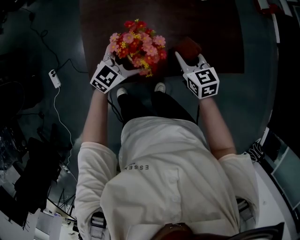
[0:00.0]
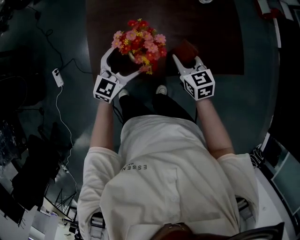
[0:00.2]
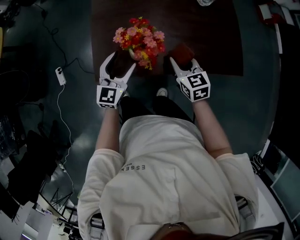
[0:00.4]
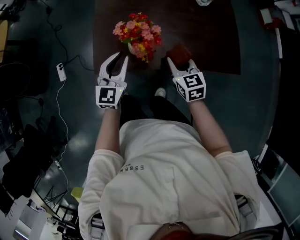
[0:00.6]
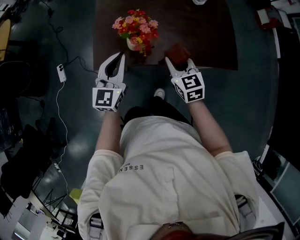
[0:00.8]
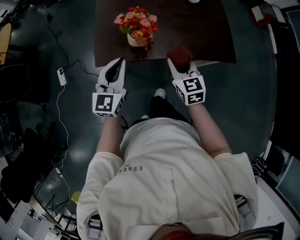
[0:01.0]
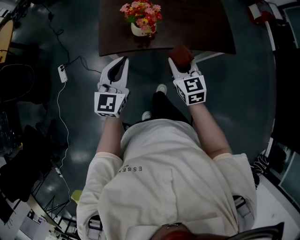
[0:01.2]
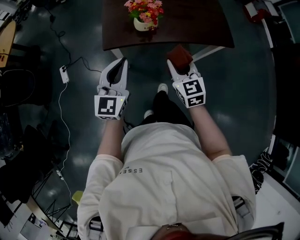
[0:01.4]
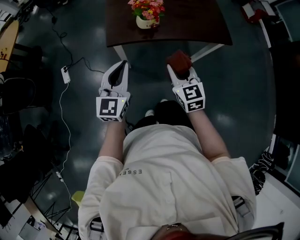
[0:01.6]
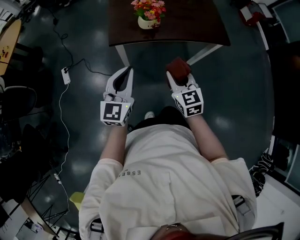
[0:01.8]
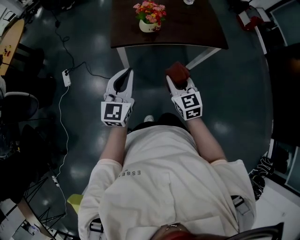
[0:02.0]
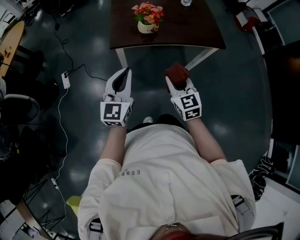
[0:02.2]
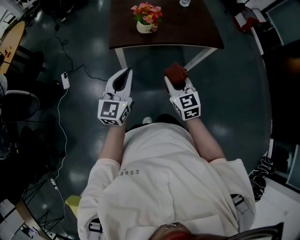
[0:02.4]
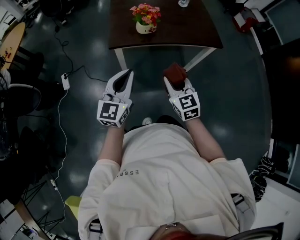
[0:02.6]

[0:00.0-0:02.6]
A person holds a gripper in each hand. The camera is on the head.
0:00.0 to 0:01.2: The left gripper shifts some 25 cm backward and upward, turns by about 40 degrees, and closes up. Meanwhile the right gripper goes approximately 20 cm backward.
0:01.2 to 0:02.6: The grippers both shift backward by about 20 cm.

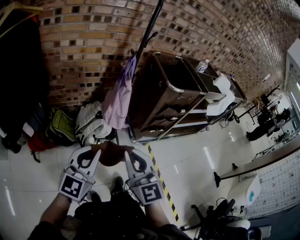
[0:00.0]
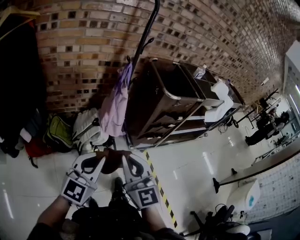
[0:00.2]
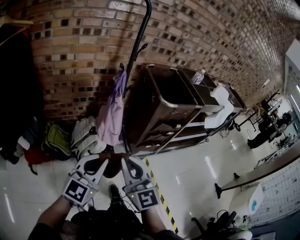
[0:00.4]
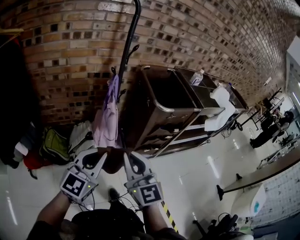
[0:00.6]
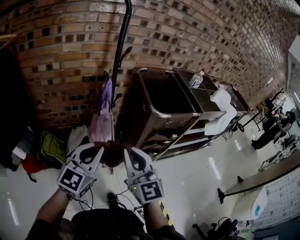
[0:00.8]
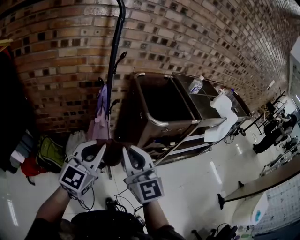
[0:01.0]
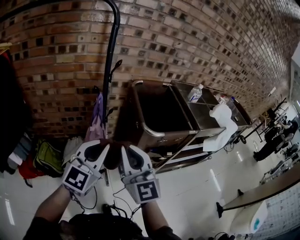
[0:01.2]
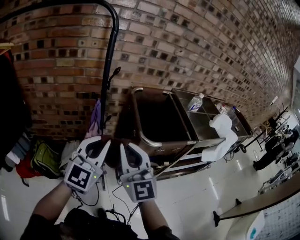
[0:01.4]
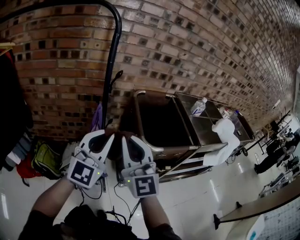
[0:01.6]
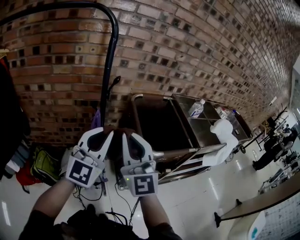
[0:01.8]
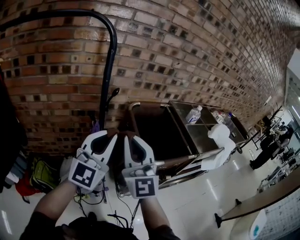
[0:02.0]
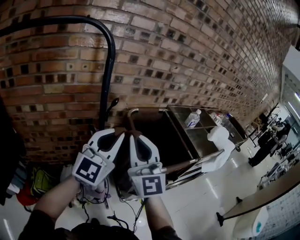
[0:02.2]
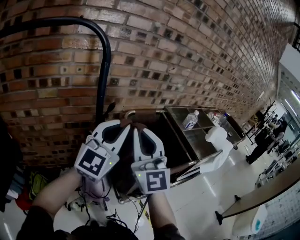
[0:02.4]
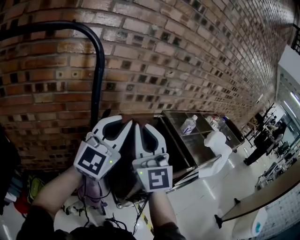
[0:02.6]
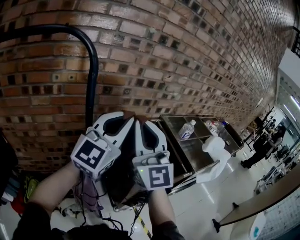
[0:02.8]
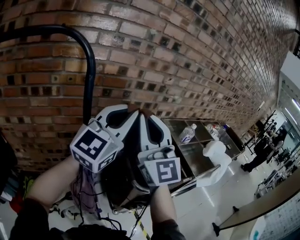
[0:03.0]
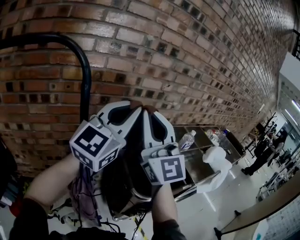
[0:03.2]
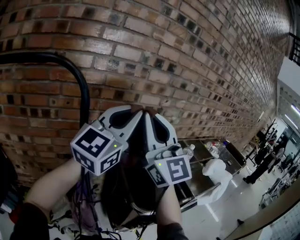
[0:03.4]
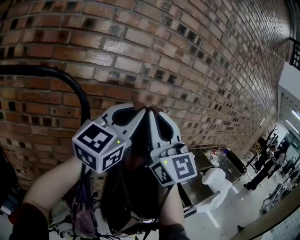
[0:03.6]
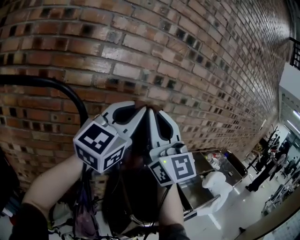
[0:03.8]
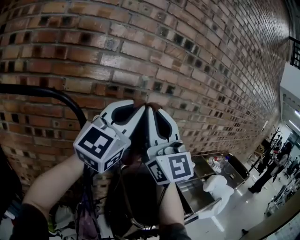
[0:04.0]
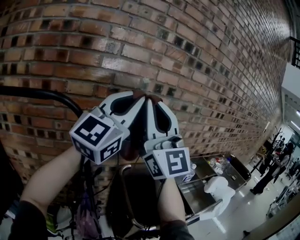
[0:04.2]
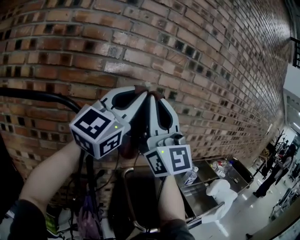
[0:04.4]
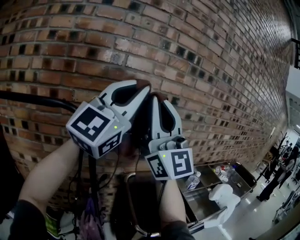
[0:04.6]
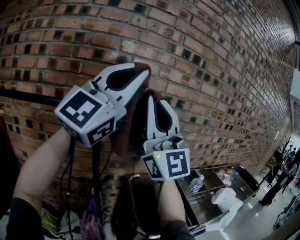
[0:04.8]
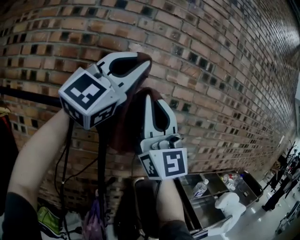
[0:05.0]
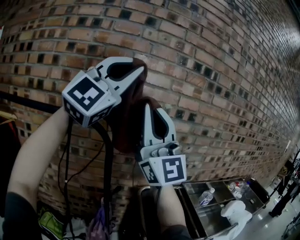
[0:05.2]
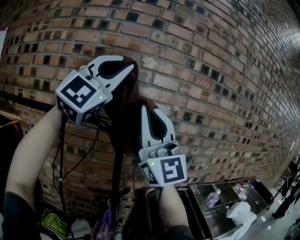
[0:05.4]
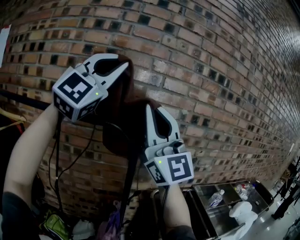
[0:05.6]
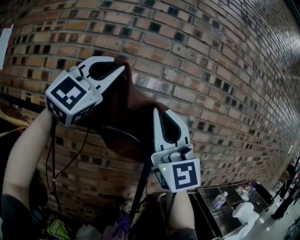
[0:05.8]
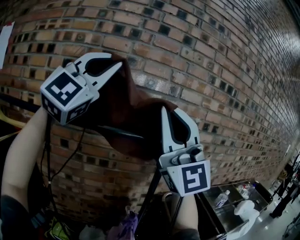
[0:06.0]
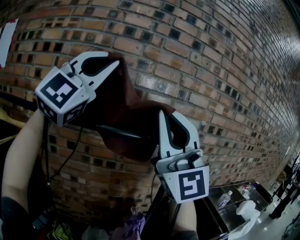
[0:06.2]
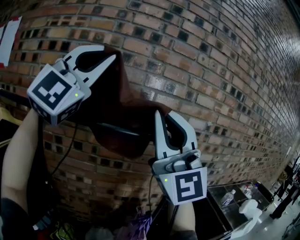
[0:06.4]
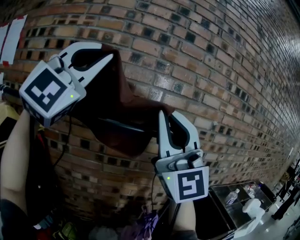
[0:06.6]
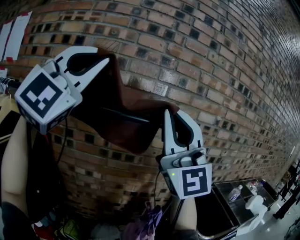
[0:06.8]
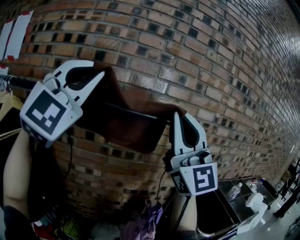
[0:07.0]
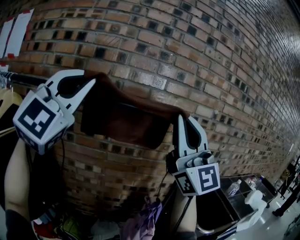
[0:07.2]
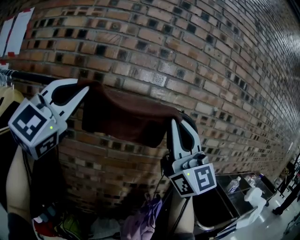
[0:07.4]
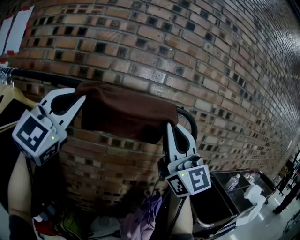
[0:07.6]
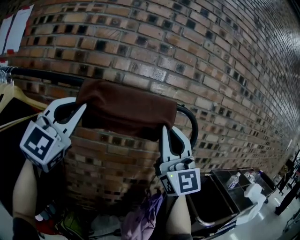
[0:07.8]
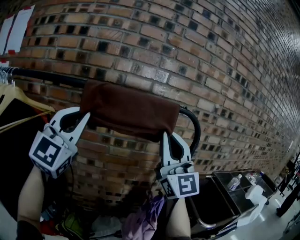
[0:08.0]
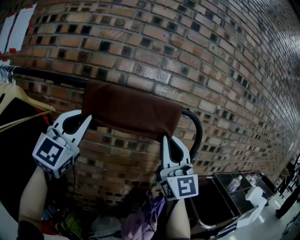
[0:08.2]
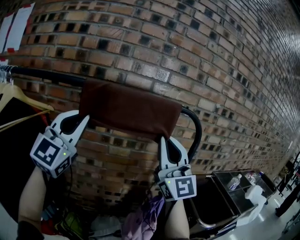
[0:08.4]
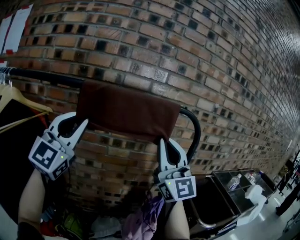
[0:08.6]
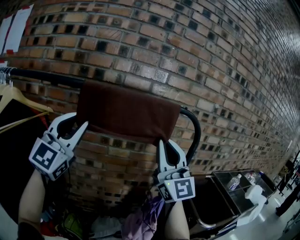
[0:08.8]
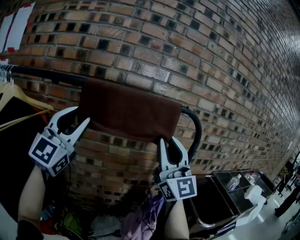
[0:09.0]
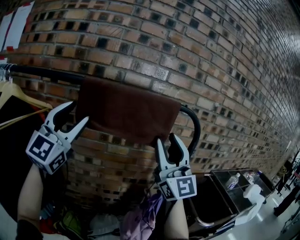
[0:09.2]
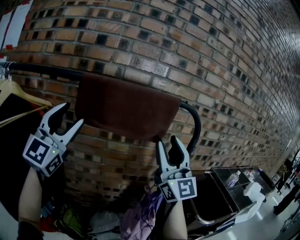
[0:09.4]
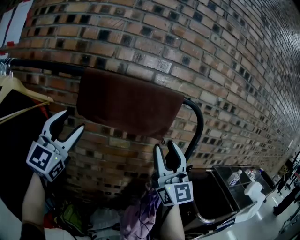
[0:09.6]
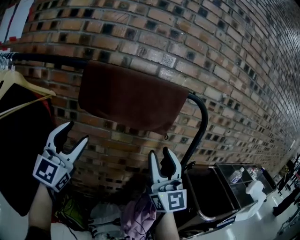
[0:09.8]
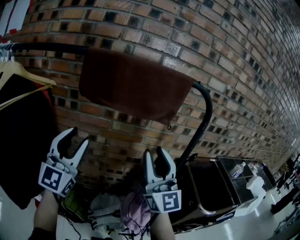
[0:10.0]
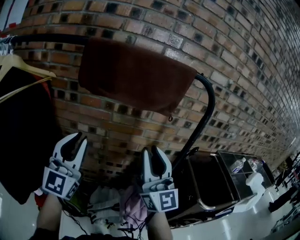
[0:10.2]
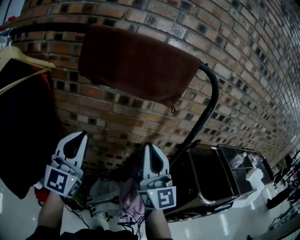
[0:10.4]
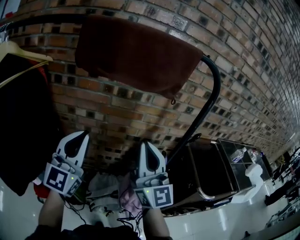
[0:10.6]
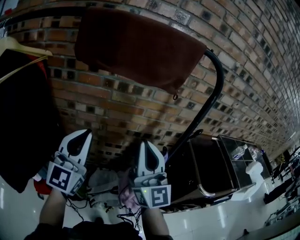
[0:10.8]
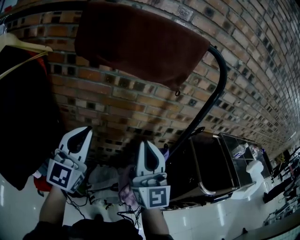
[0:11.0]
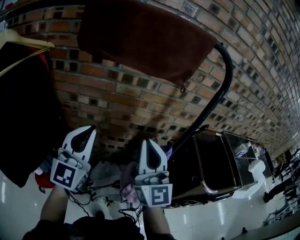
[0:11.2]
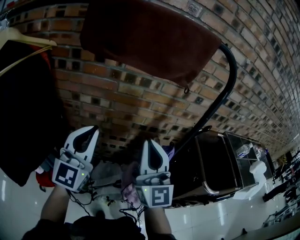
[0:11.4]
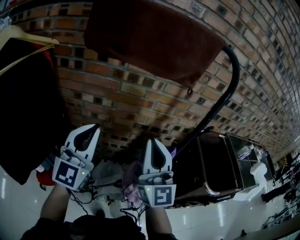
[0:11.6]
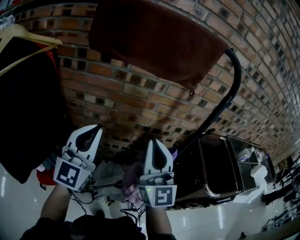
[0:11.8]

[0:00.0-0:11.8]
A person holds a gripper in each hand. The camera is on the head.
0:00.0 to 0:01.4: Both grippers travel together forward and to the right, roughly 40 cm.
0:01.4 to 0:03.0: Both grippers travel together forward and upward, some 30 cm. The left gripper turns by approximately 20 degrees.
0:03.0 to 0:04.4: The two grippers go approximately 25 cm upward. The right gripper changes its angle by approximately 20 degrees.
0:04.4 to 0:06.0: Both grippers move to the left, approximately 30 cm. The left gripper rotates some 40 degrees.
0:06.0 to 0:07.4: The left gripper moves to the left and downward, about 25 cm; the right gripper heads downward and to the left, covering some 15 cm.
0:07.4 to 0:08.8: Both grippers move downward, approximately 10 cm.
0:08.8 to 0:10.4: Both grippers move downward, approximately 15 cm. The right gripper opens, then closes once more, while the left gripper closes.
0:10.4 to 0:11.8: The right gripper goes roughly 5 cm downward.

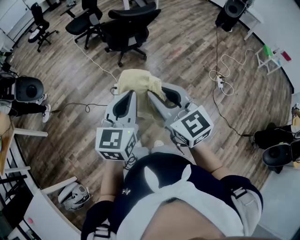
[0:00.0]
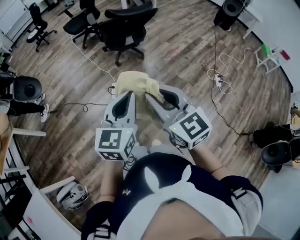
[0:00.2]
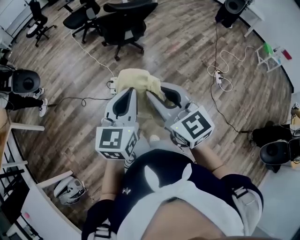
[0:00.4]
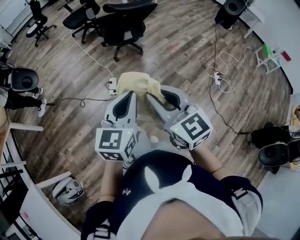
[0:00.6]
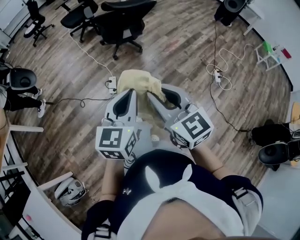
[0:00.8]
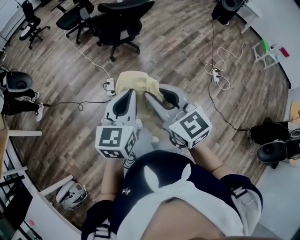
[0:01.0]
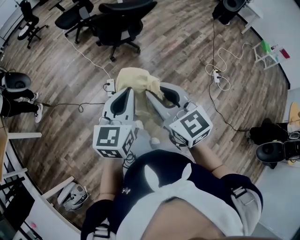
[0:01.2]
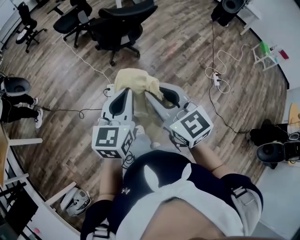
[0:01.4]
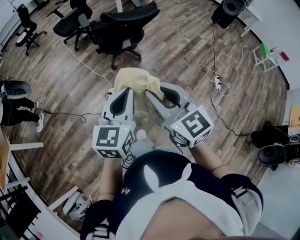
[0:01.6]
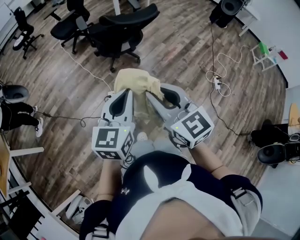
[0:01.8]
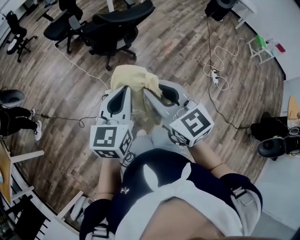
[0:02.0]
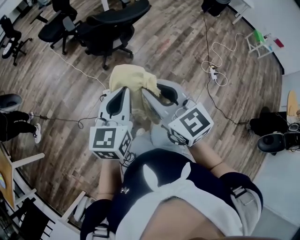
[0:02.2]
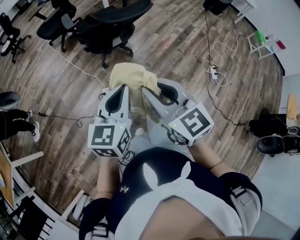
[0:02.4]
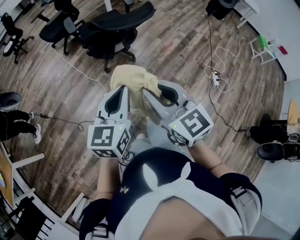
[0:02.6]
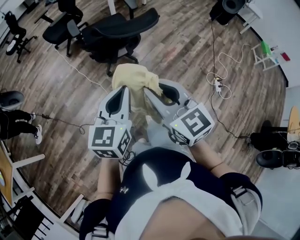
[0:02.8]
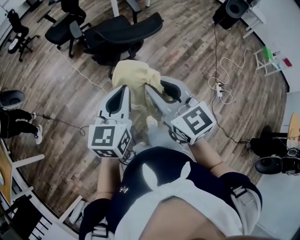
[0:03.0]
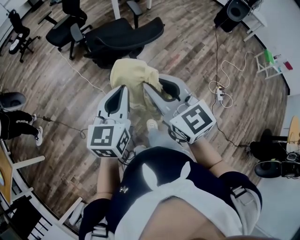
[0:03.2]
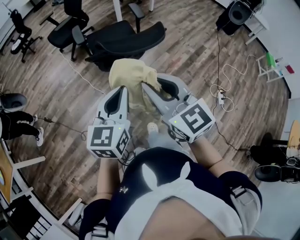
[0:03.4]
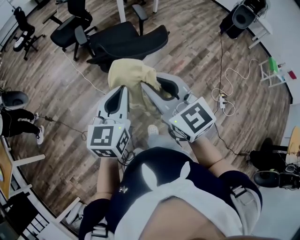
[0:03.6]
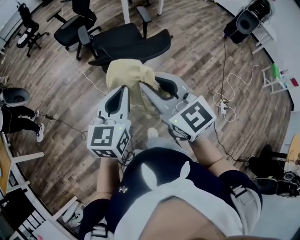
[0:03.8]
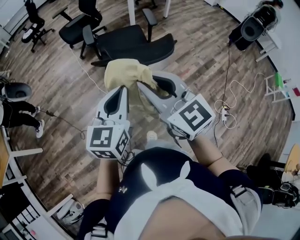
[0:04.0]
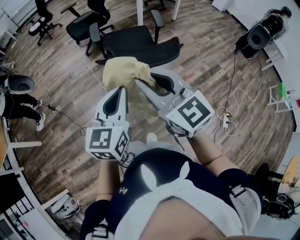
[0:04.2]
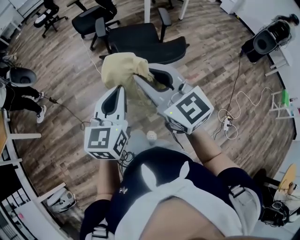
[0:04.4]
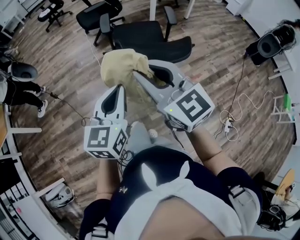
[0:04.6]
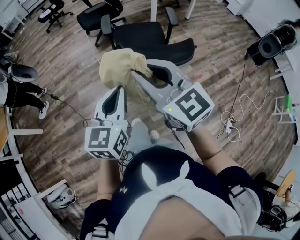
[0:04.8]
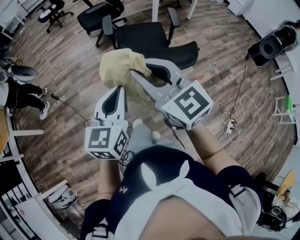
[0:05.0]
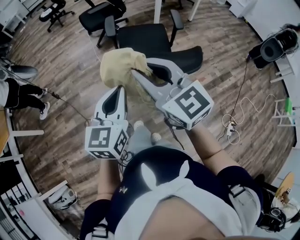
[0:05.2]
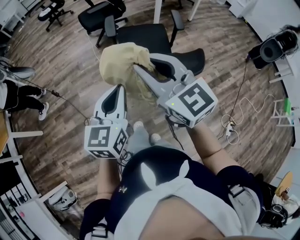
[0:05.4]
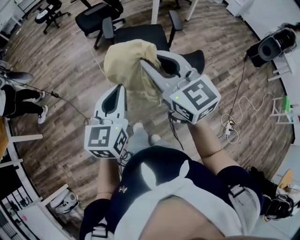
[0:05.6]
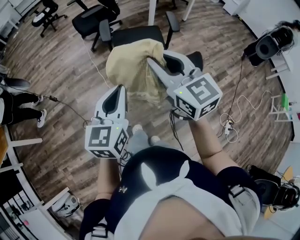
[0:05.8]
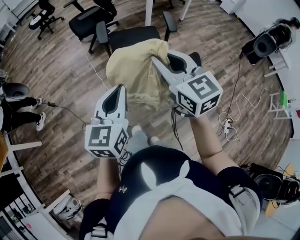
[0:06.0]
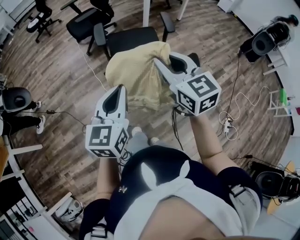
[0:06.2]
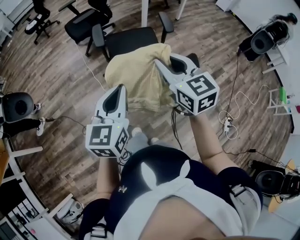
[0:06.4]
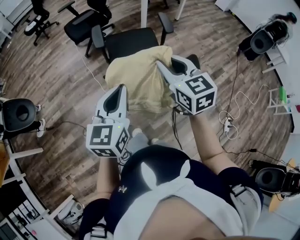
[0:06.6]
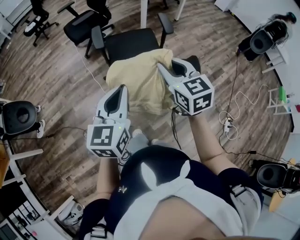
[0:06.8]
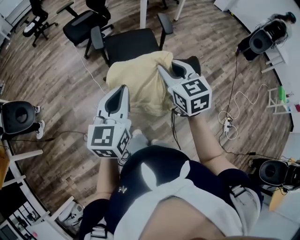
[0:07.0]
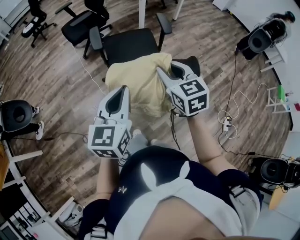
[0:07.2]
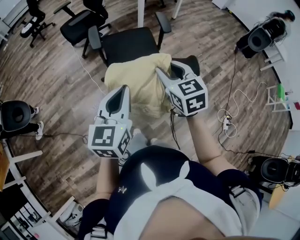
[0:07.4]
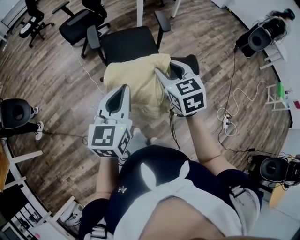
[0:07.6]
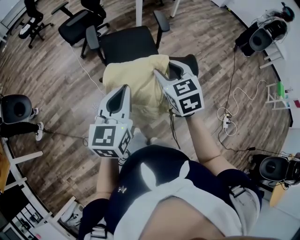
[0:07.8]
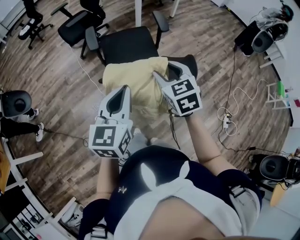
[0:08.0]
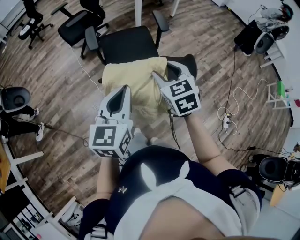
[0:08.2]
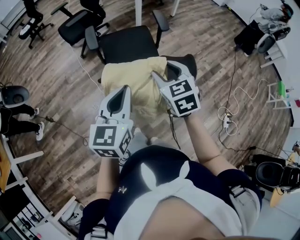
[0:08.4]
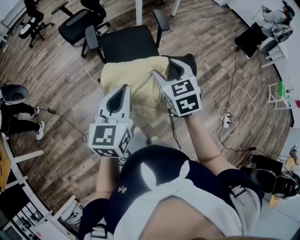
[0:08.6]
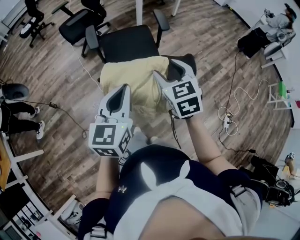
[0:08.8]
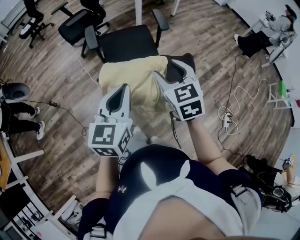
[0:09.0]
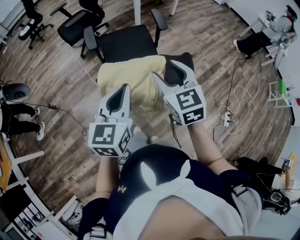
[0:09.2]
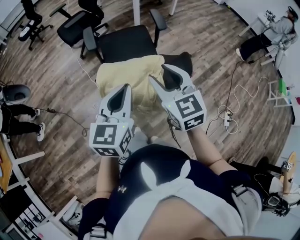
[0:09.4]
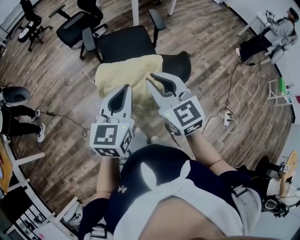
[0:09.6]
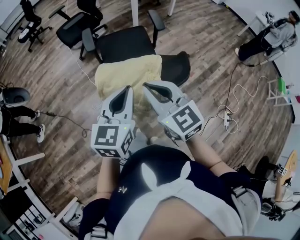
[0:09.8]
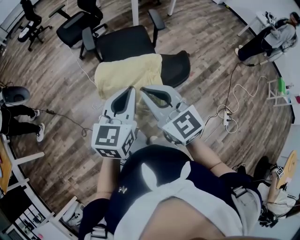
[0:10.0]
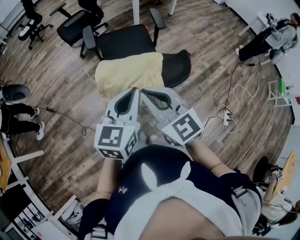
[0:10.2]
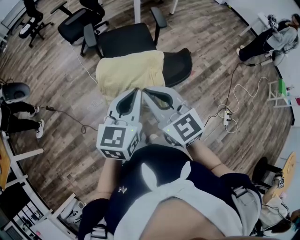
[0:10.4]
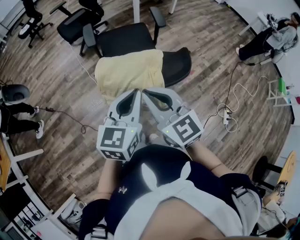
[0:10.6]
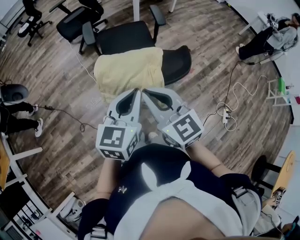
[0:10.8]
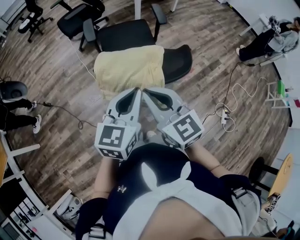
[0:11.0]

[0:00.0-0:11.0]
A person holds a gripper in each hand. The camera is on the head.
0:00.0 to 0:01.6: Both grippers travel together forward, approximately 20 cm.
0:01.6 to 0:03.2: The grippers both shift forward by some 30 cm.
0:03.2 to 0:04.8: The two grippers go roughly 10 cm forward. The right gripper turns by some 20 degrees.
0:04.8 to 0:06.2: The right gripper moves forward and to the right, roughly 20 cm; the left gripper travels forward by approximately 15 cm.
0:06.2 to 0:07.8: The left gripper ends up about 5 cm from where it was. Meanwhile the right gripper is displaced downward by roughly 10 cm, rotates about 20 degrees, and opens its fingers.
0:07.8 to 0:09.4: The right gripper shifts by about 5 cm.
0:09.4 to 0:11.0: The left gripper heads backward, covering approximately 5 cm, while the right gripper is displaced backward by some 10 cm, and closes up.
